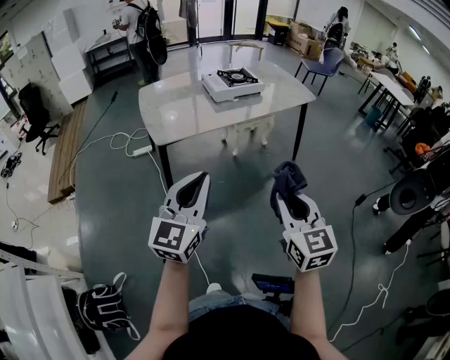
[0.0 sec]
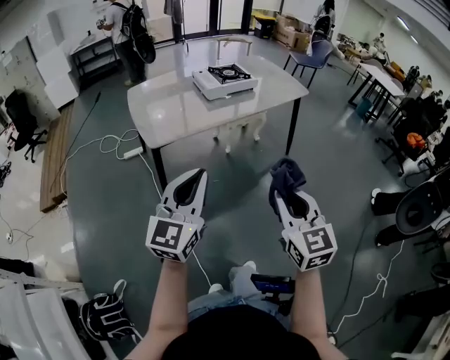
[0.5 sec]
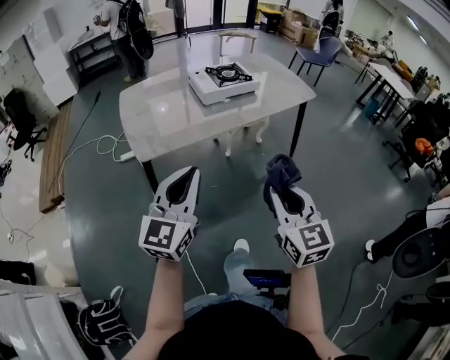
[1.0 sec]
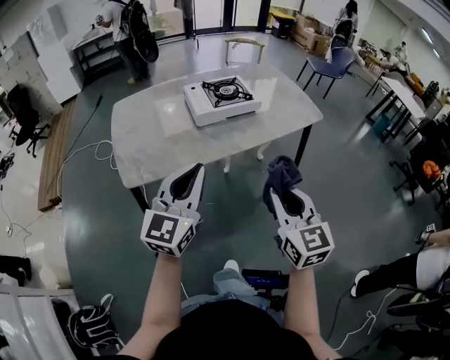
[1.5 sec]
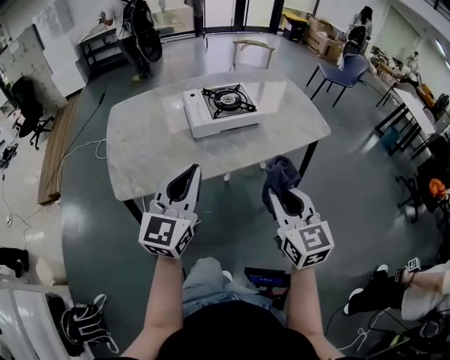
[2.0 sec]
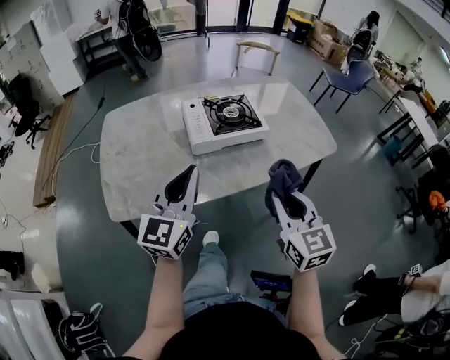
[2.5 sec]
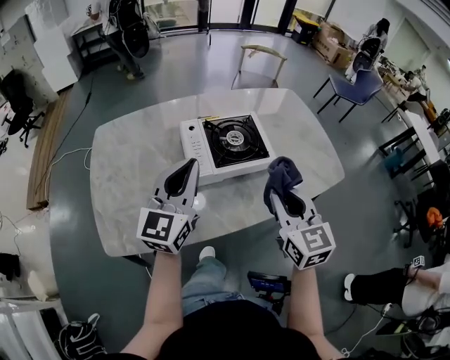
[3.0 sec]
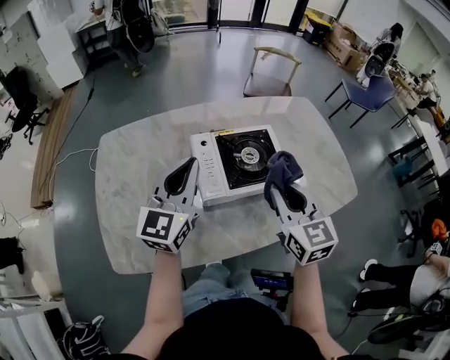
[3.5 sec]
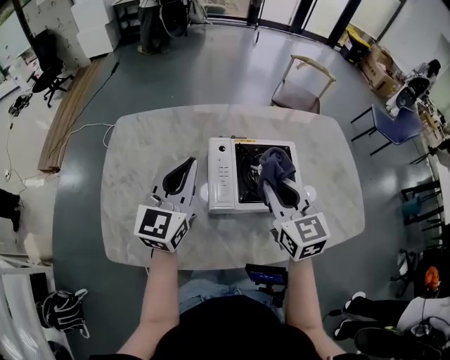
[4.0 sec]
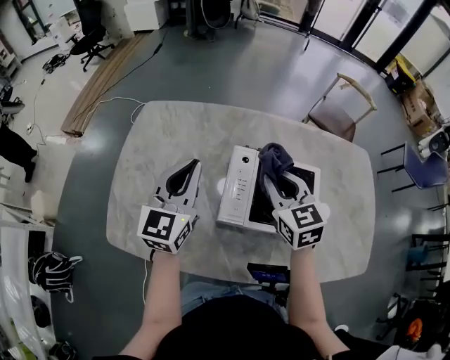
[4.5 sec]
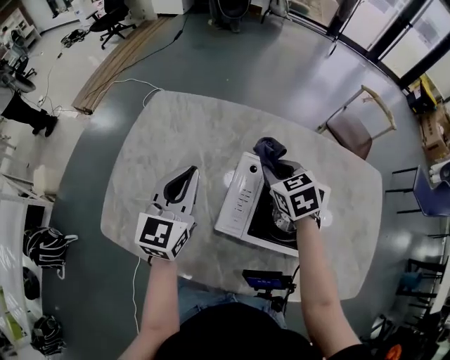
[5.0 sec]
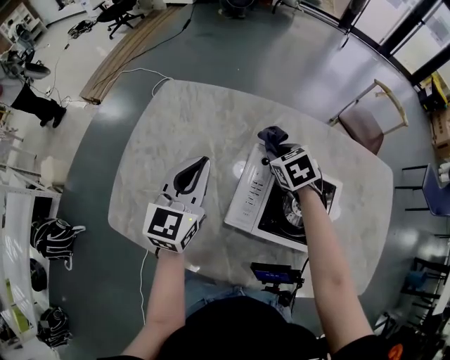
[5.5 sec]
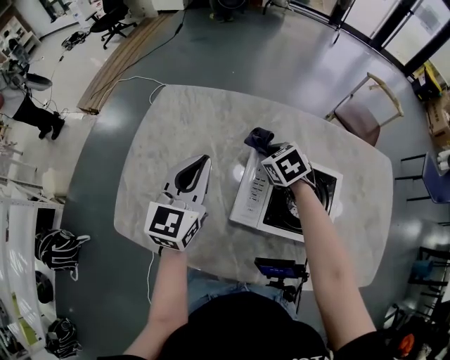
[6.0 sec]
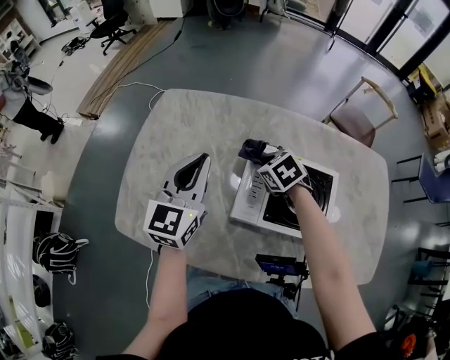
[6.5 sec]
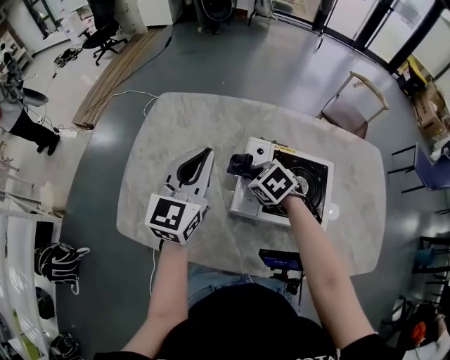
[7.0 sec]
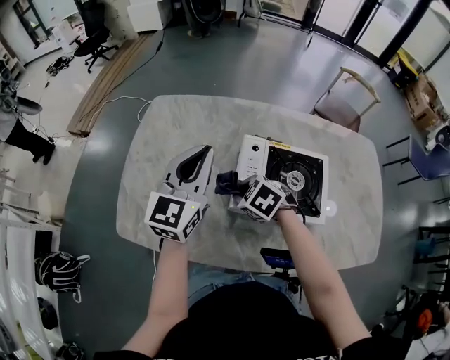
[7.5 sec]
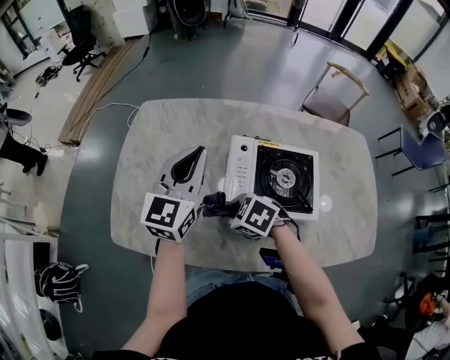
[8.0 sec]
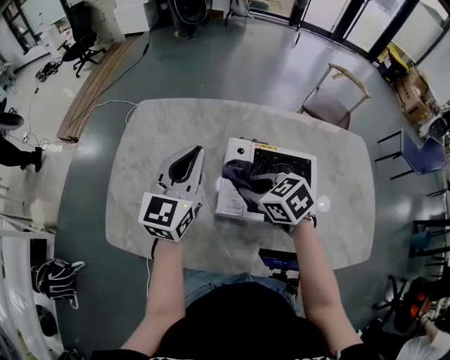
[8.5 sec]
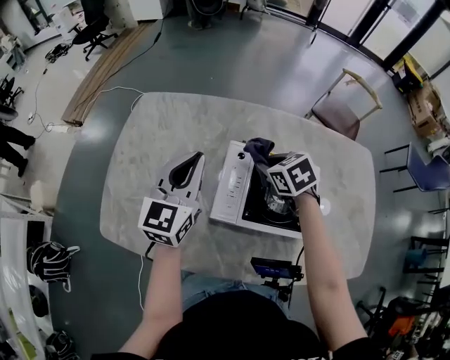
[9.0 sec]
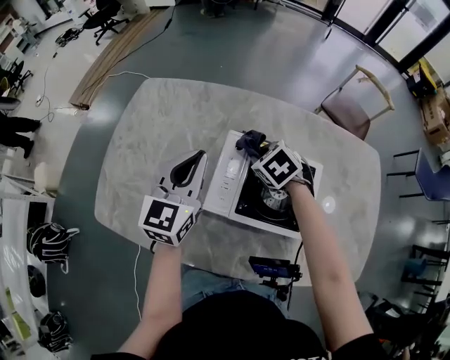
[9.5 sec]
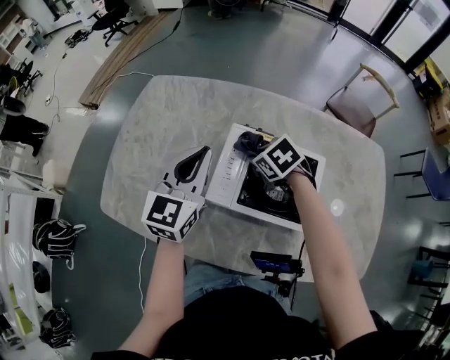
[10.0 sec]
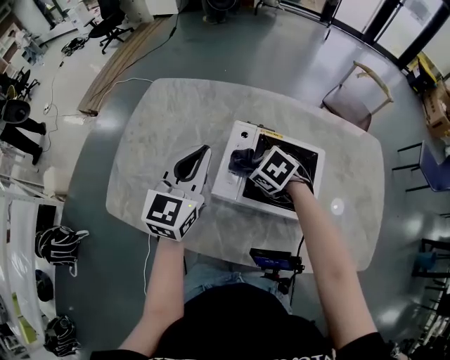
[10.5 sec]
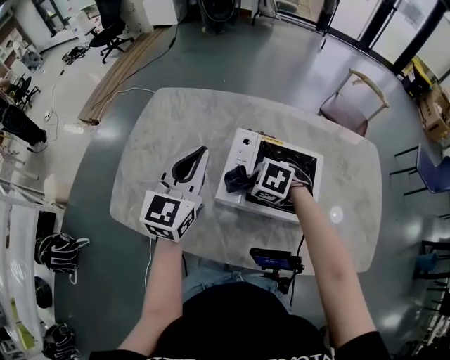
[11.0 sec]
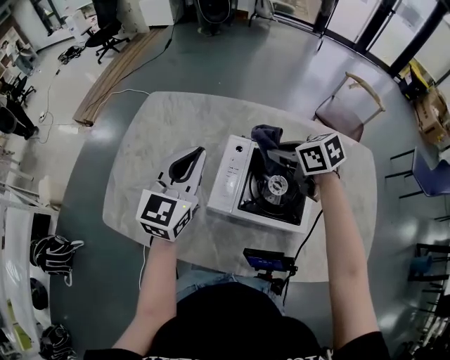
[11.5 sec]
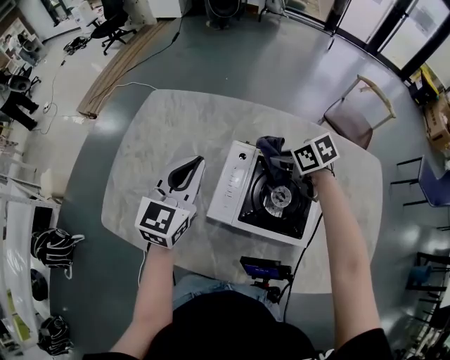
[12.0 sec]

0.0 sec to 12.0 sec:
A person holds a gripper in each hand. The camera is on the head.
0.0 sec to 2.0 sec: Both grippers move forward, approximately 35 cm.
2.0 sec to 4.0 sec: Both grippers move forward, about 35 cm.
4.0 sec to 6.0 sec: The left gripper moves some 10 cm. Meanwhile the right gripper shifts by some 25 cm, and tilts its fingers approximately 40 degrees downward.
6.0 sec to 8.0 sec: The right gripper moves backward and to the left, roughly 25 cm, and changes its angle by roughly 20 degrees. The left gripper moves some 5 cm.
8.0 sec to 10.0 sec: The left gripper ends up approximately 5 cm from where it was. Meanwhile the right gripper is displaced to the right and forward by approximately 20 cm.
10.0 sec to 12.0 sec: The right gripper travels to the right by approximately 5 cm, and changes its angle by about 20 degrees.

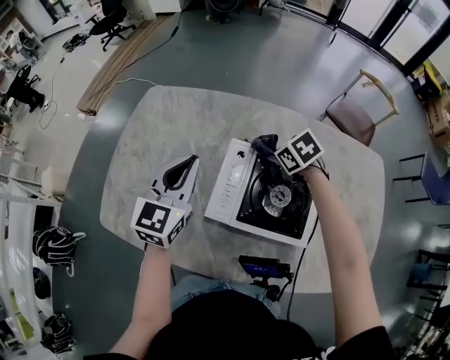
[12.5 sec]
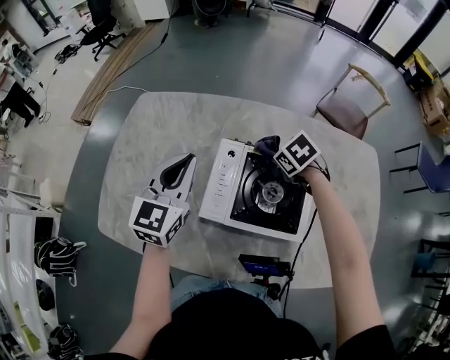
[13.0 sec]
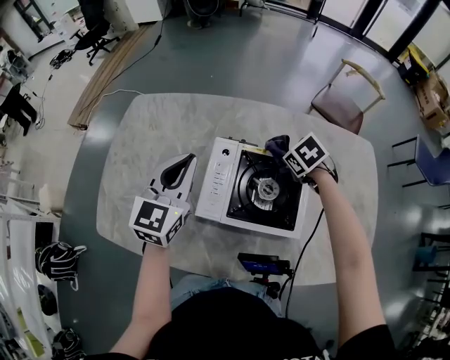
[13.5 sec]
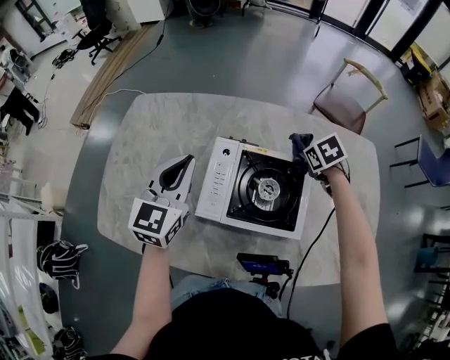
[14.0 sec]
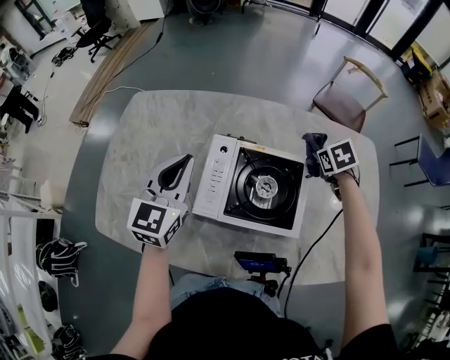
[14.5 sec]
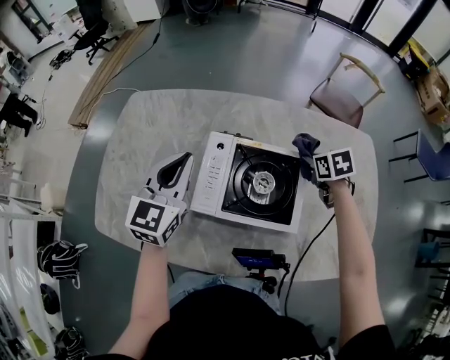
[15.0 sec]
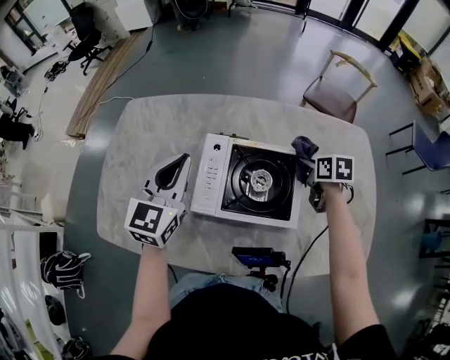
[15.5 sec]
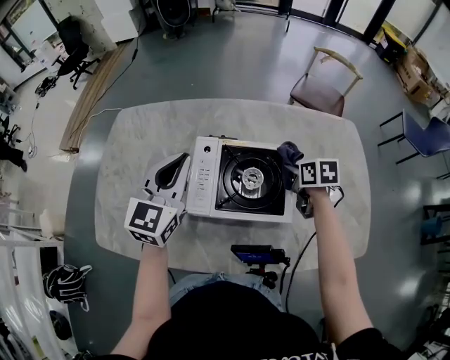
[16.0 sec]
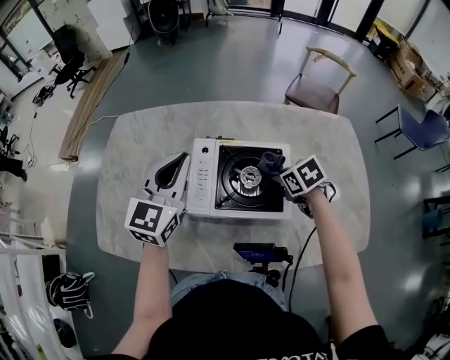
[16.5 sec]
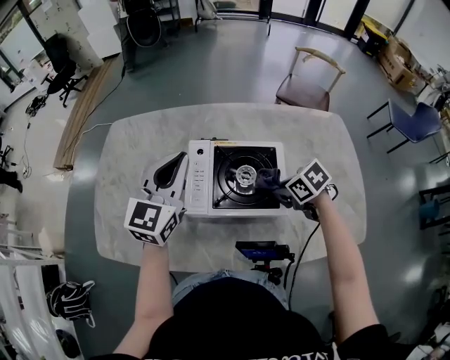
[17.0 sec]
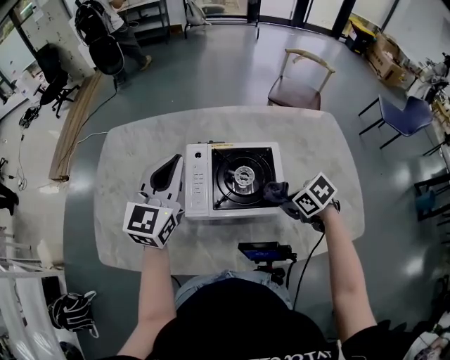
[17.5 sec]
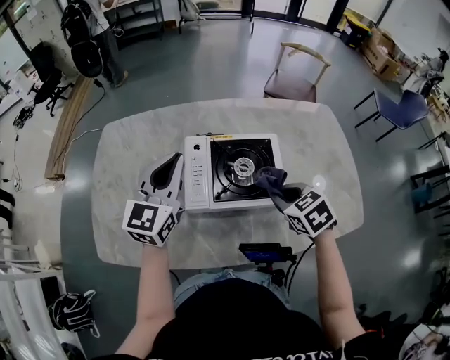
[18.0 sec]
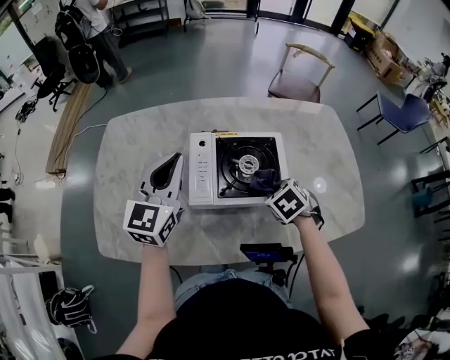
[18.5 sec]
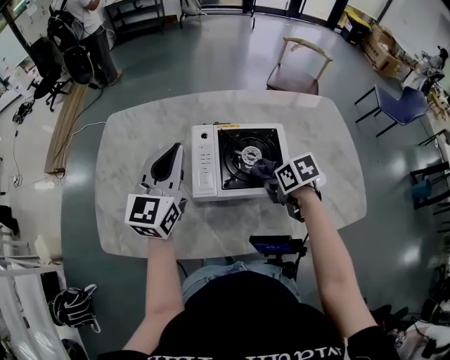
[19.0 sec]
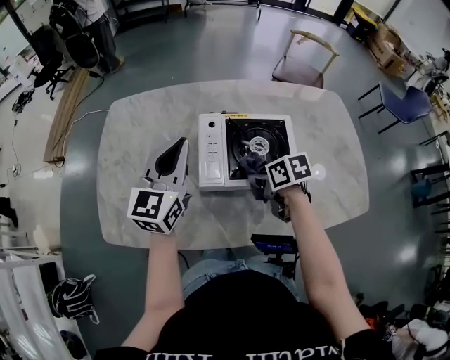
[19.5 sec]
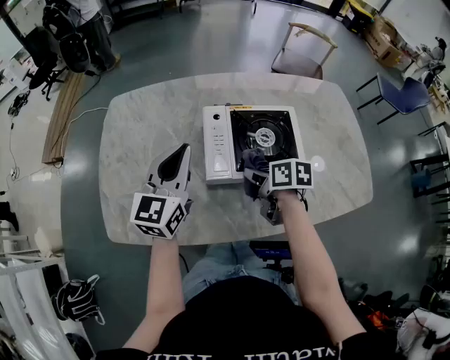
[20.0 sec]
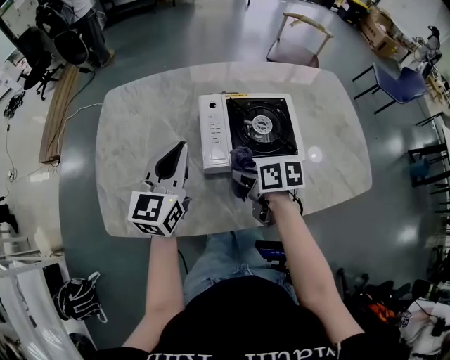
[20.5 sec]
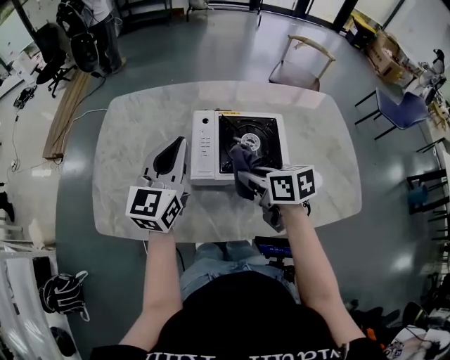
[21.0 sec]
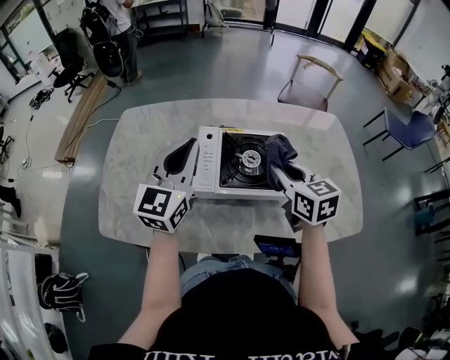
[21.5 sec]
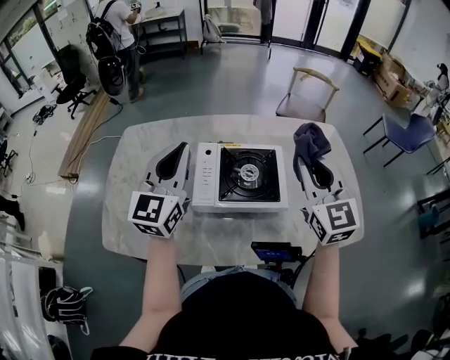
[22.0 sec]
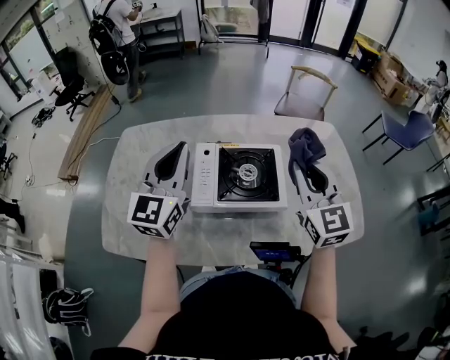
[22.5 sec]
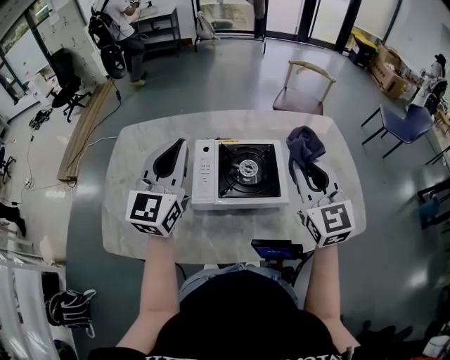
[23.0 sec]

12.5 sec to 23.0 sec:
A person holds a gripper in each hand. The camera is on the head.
12.5 sec to 14.5 sec: The right gripper moves roughly 20 cm, and changes its angle by roughly 30 degrees.
14.5 sec to 16.5 sec: The left gripper shifts by roughly 5 cm. The right gripper travels backward and to the left by about 15 cm.
16.5 sec to 19.0 sec: The right gripper shifts by approximately 10 cm, and rotates roughly 20 degrees.
19.0 sec to 21.0 sec: The right gripper heads to the left and upward, covering approximately 10 cm, and changes its angle by about 30 degrees.
21.0 sec to 23.0 sec: The left gripper is displaced upward by about 5 cm. Meanwhile the right gripper goes some 20 cm upward and to the right, and swivels some 60 degrees.

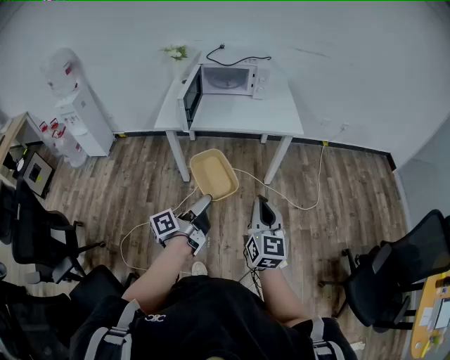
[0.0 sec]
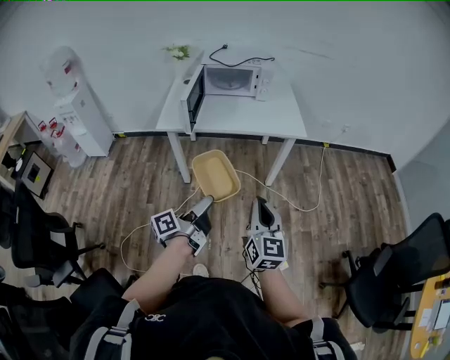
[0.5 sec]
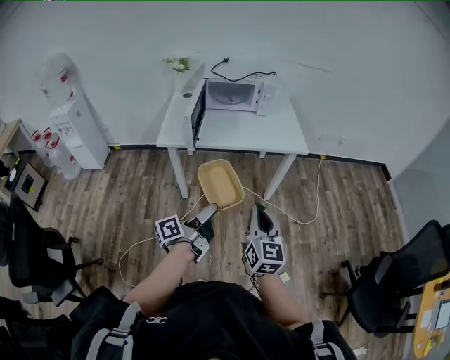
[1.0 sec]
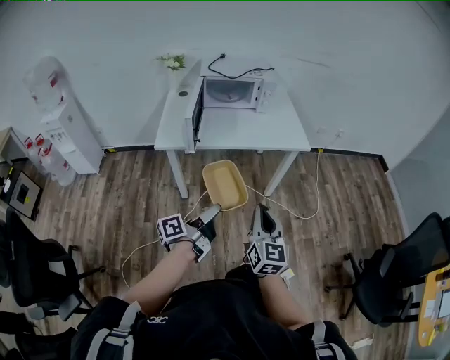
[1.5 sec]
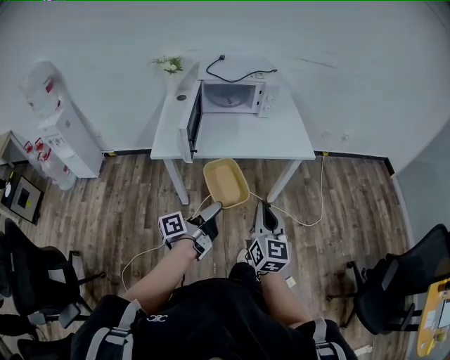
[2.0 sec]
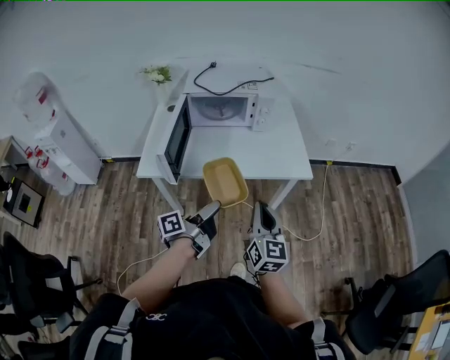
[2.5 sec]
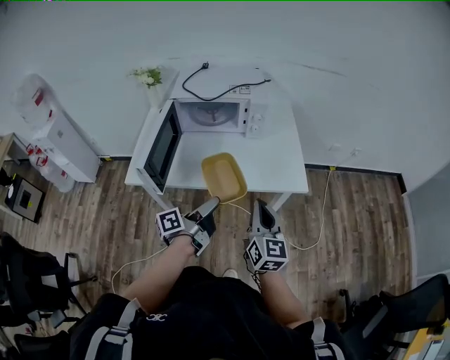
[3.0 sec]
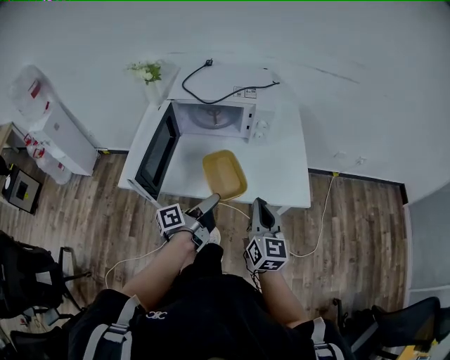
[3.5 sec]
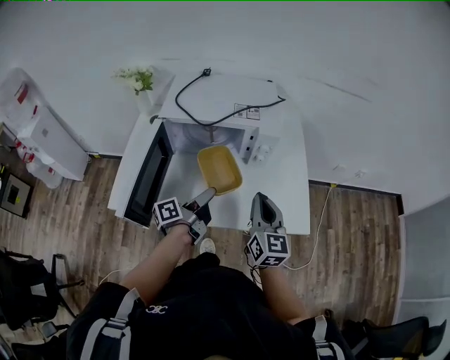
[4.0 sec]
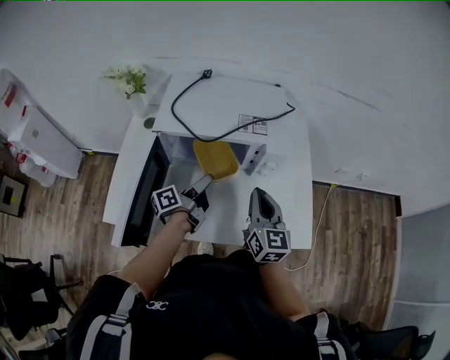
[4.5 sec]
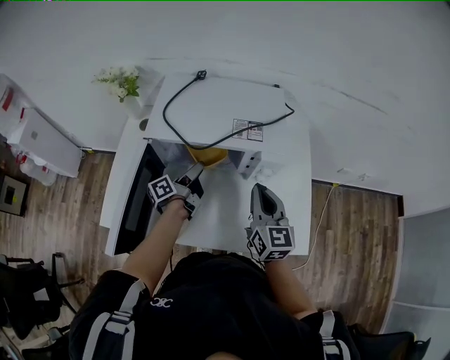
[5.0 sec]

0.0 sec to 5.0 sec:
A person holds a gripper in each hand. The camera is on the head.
0.0 sec to 2.5 sec: Both grippers travel together forward, roughly 35 cm.
2.5 sec to 5.0 sec: The pair of grippers is taken forward, approximately 50 cm.
